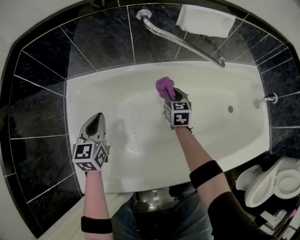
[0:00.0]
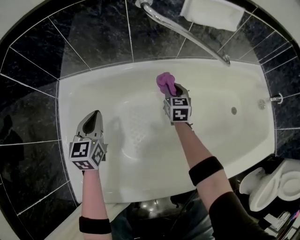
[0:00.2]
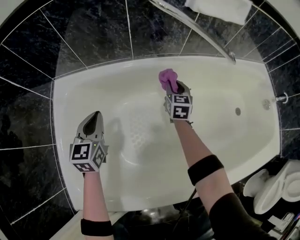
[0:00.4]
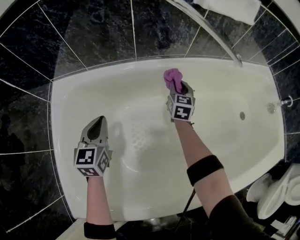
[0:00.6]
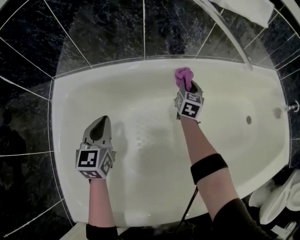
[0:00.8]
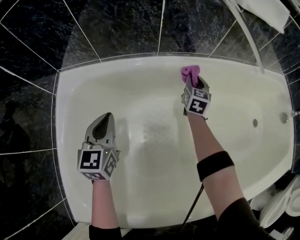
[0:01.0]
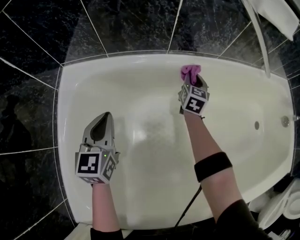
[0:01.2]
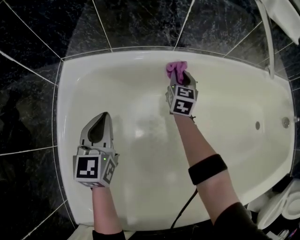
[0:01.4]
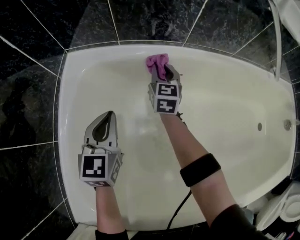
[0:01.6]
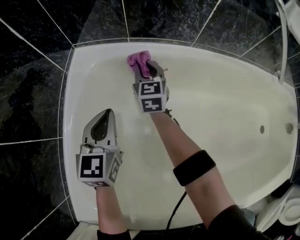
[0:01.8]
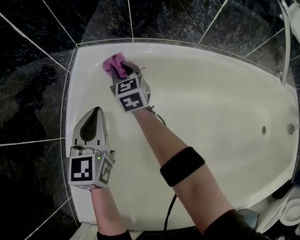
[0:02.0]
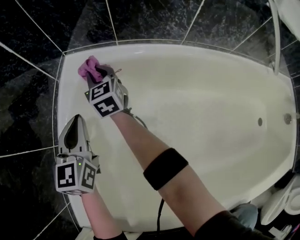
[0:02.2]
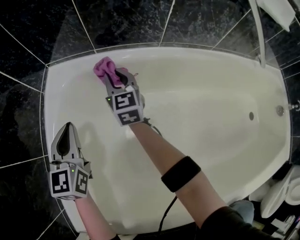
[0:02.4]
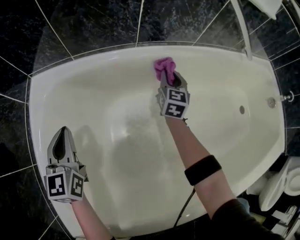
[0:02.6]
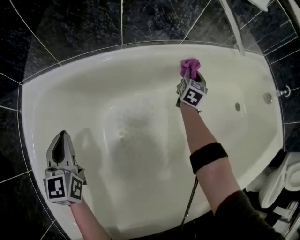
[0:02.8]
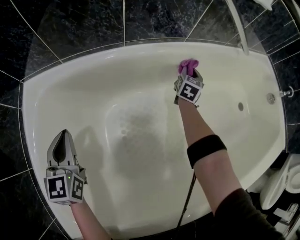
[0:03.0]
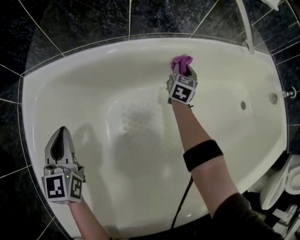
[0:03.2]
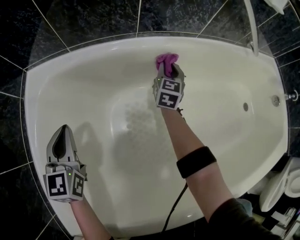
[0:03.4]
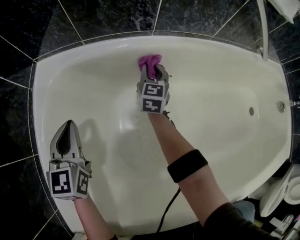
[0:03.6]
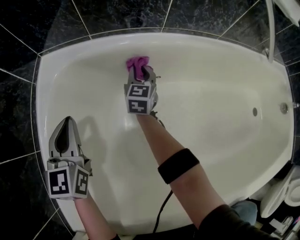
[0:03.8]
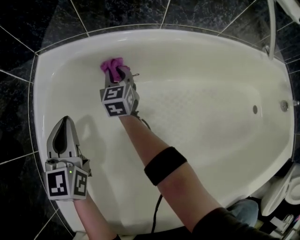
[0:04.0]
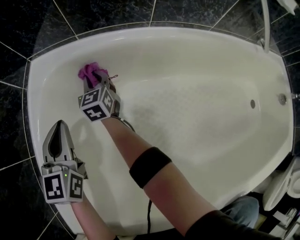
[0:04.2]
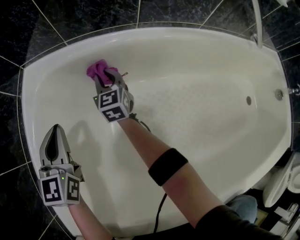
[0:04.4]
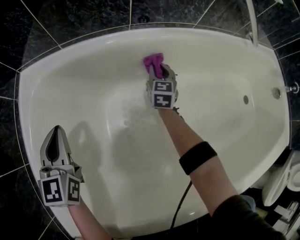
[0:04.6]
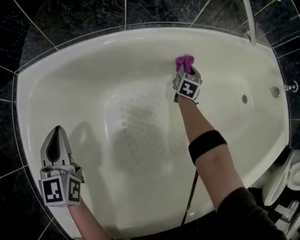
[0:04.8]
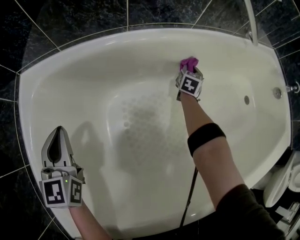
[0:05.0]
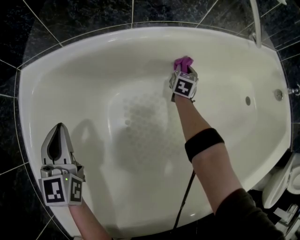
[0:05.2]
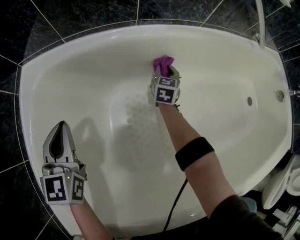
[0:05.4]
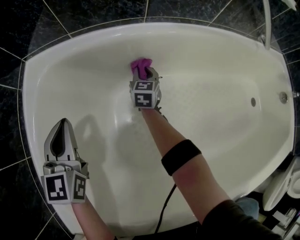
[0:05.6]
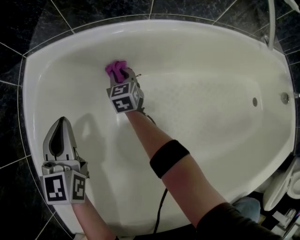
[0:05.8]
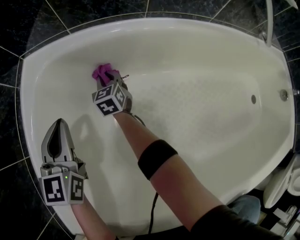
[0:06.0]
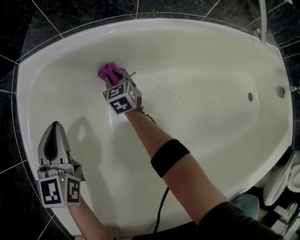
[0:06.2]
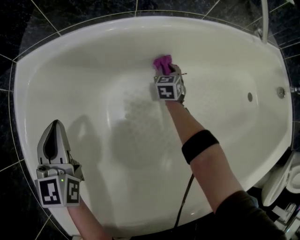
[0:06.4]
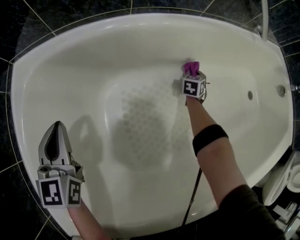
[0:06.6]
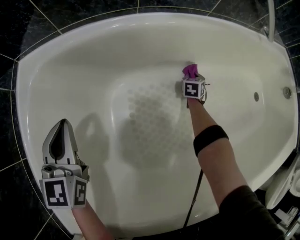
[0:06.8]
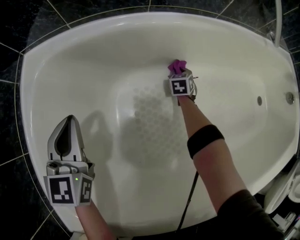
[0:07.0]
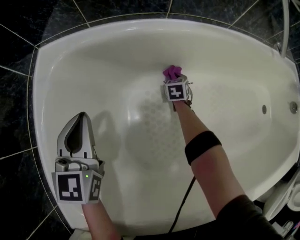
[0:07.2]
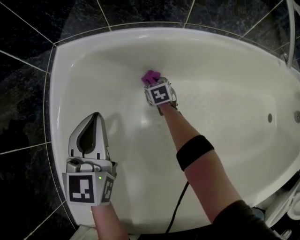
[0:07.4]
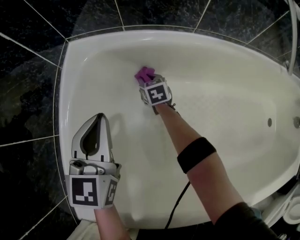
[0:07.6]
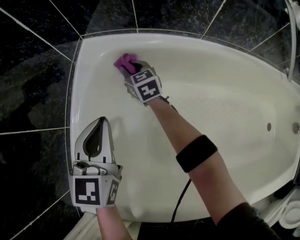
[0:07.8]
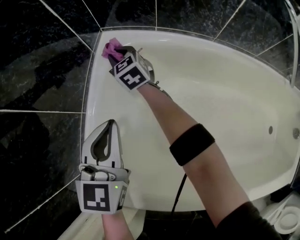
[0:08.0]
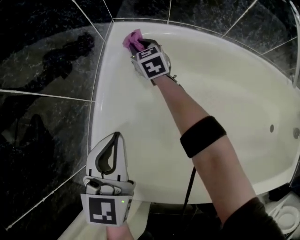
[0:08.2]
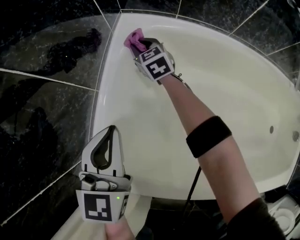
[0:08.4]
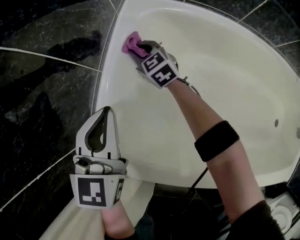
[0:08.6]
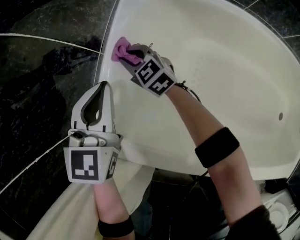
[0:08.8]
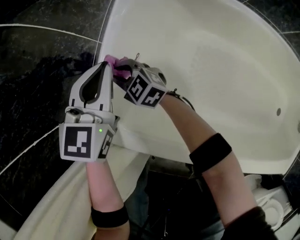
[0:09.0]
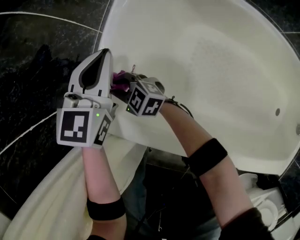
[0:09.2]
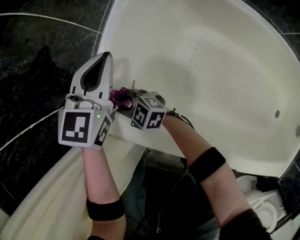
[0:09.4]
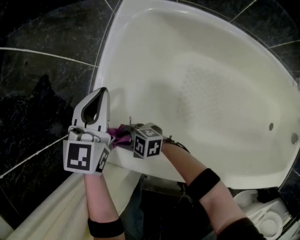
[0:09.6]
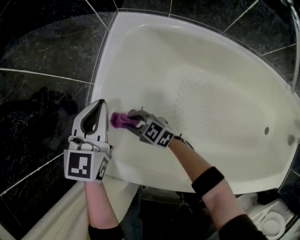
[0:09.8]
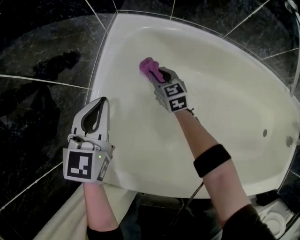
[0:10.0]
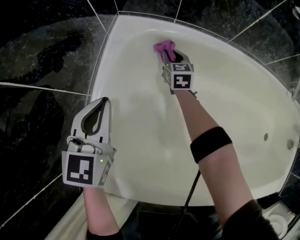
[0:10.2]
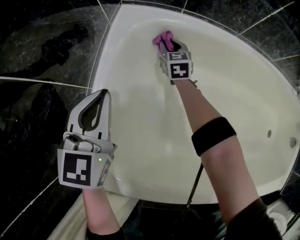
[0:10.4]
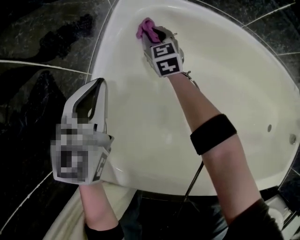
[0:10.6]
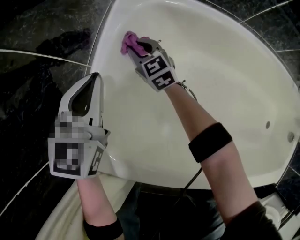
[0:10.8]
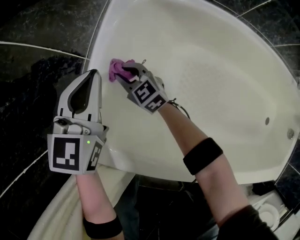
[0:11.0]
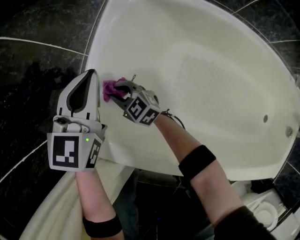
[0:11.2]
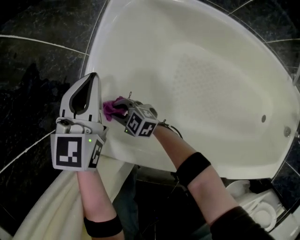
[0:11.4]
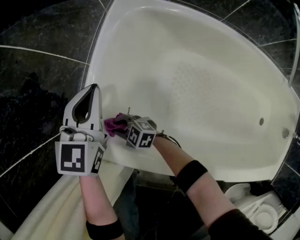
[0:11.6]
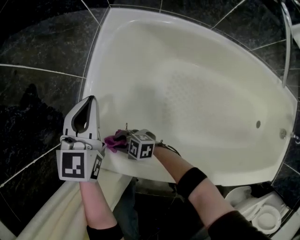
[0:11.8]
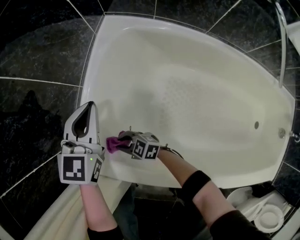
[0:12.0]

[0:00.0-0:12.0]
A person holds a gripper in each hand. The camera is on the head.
0:00.0 to 0:01.6: The left gripper goes approximately 20 cm downward and to the left; the right gripper travels to the left, downward and forward by about 30 cm.
0:01.6 to 0:03.0: The right gripper ends up roughly 40 cm from where it was, and rotates about 30 degrees.
0:03.0 to 0:04.4: The right gripper shifts by about 40 cm, and swivels about 50 degrees.
0:04.4 to 0:06.0: The right gripper shifts approximately 10 cm downward.
0:06.0 to 0:07.6: The left gripper goes about 5 cm upward, while the right gripper moves approximately 10 cm downward and comes back.
0:07.6 to 0:09.0: The right gripper changes place by roughly 50 cm, and turns by about 60 degrees. Meanwhile the left gripper moves roughly 15 cm.
0:09.0 to 0:10.4: The left gripper changes place by approximately 5 cm. The right gripper changes place by some 40 cm, and changes its angle by about 50 degrees.
0:10.4 to 0:12.0: The left gripper shifts by roughly 5 cm, while the right gripper moves roughly 50 cm, and turns by roughly 70 degrees.

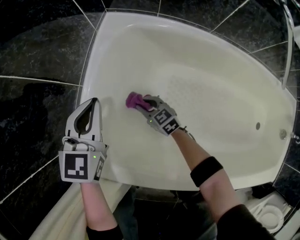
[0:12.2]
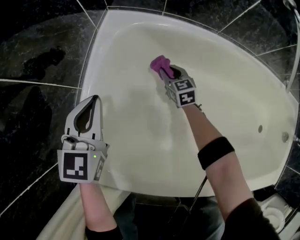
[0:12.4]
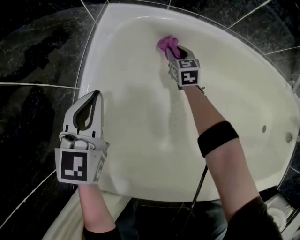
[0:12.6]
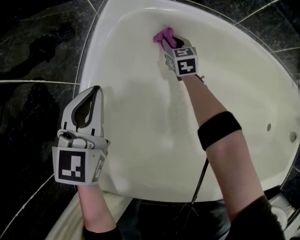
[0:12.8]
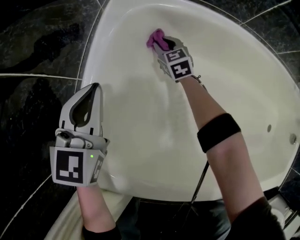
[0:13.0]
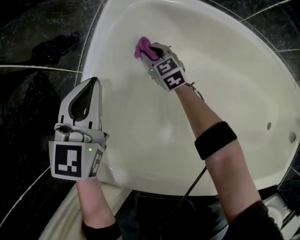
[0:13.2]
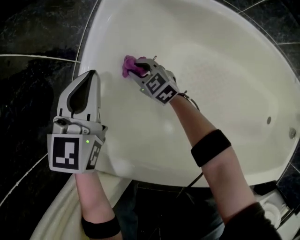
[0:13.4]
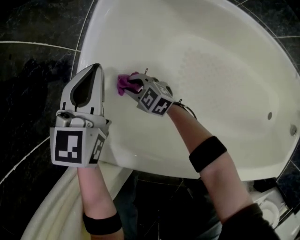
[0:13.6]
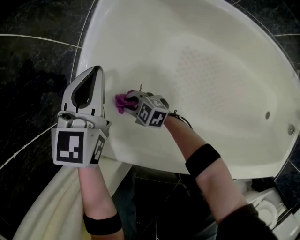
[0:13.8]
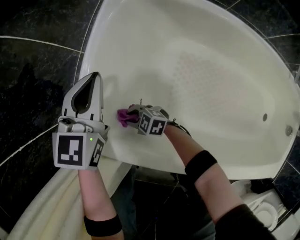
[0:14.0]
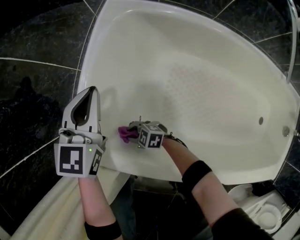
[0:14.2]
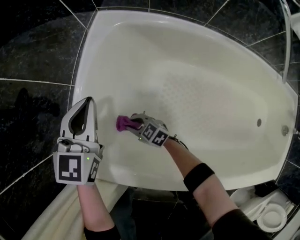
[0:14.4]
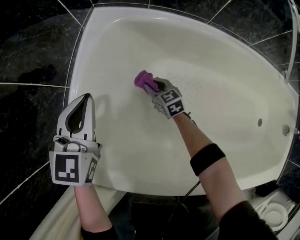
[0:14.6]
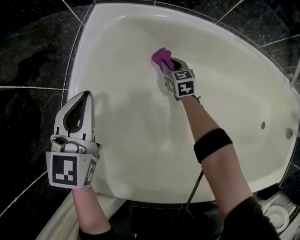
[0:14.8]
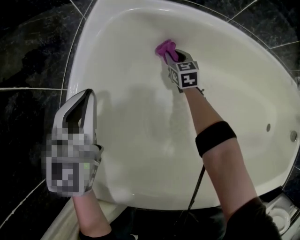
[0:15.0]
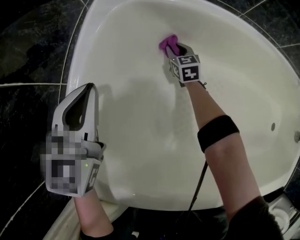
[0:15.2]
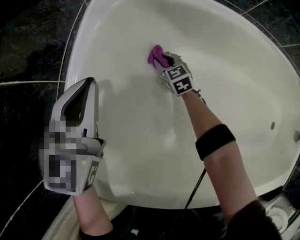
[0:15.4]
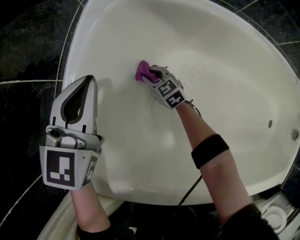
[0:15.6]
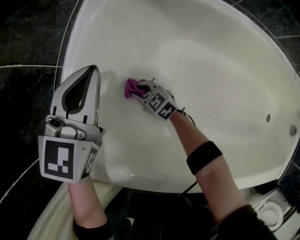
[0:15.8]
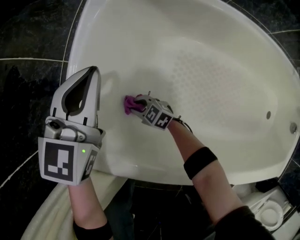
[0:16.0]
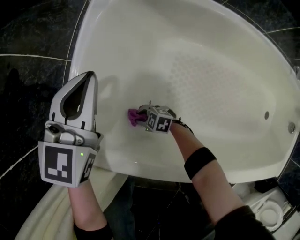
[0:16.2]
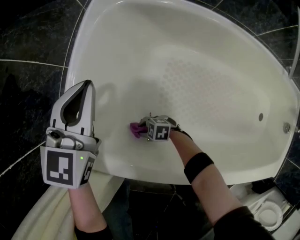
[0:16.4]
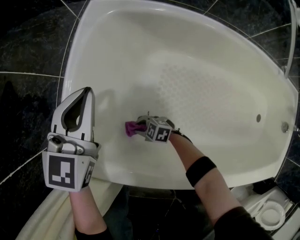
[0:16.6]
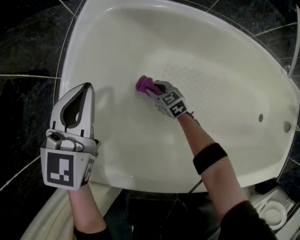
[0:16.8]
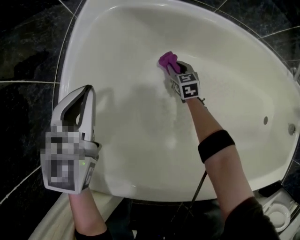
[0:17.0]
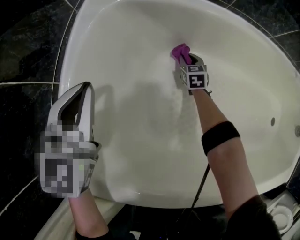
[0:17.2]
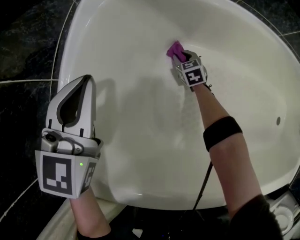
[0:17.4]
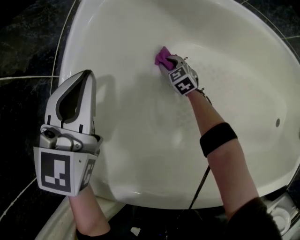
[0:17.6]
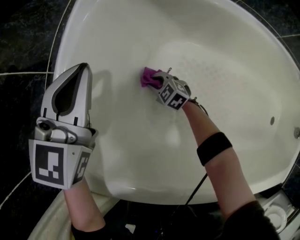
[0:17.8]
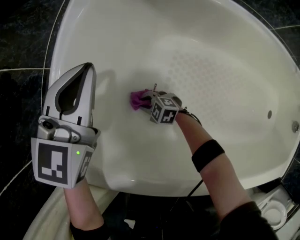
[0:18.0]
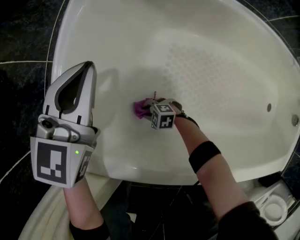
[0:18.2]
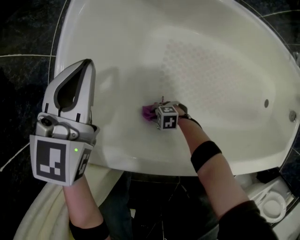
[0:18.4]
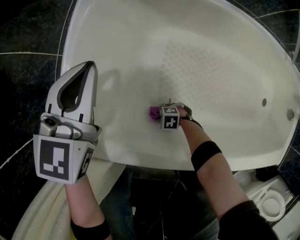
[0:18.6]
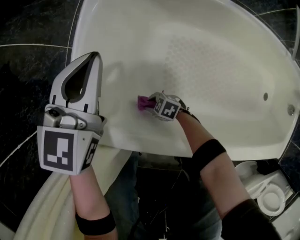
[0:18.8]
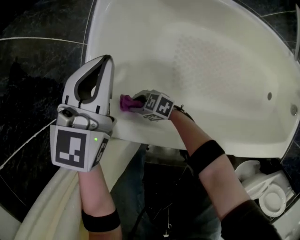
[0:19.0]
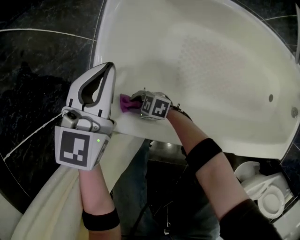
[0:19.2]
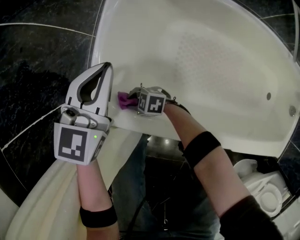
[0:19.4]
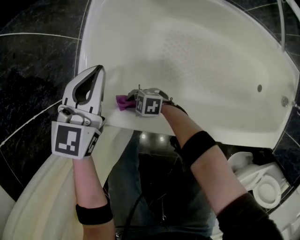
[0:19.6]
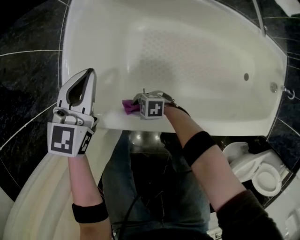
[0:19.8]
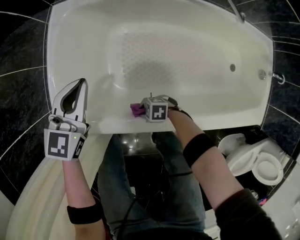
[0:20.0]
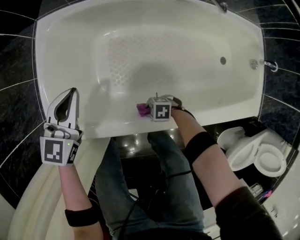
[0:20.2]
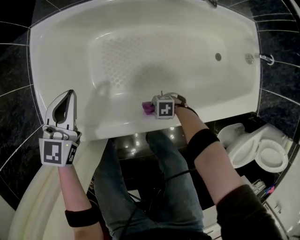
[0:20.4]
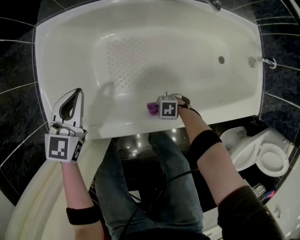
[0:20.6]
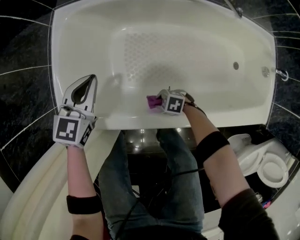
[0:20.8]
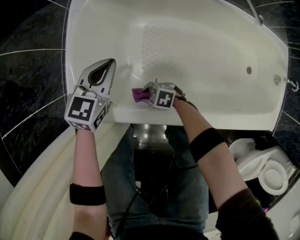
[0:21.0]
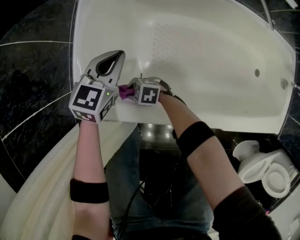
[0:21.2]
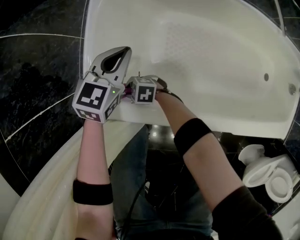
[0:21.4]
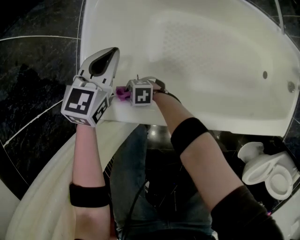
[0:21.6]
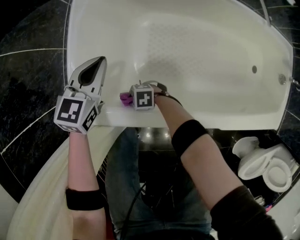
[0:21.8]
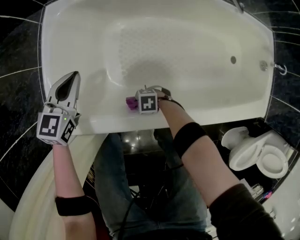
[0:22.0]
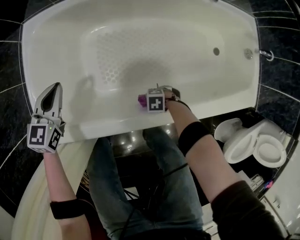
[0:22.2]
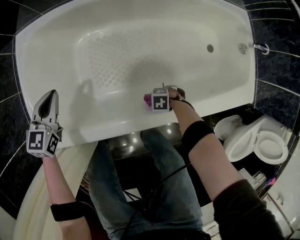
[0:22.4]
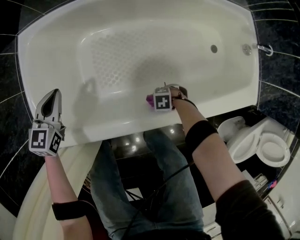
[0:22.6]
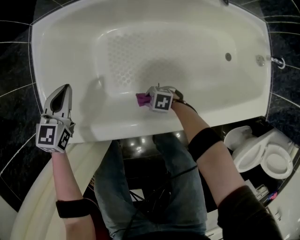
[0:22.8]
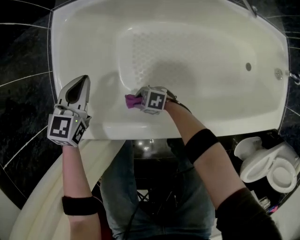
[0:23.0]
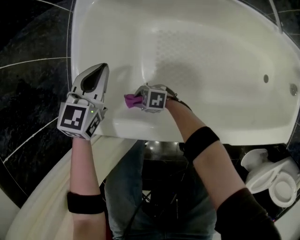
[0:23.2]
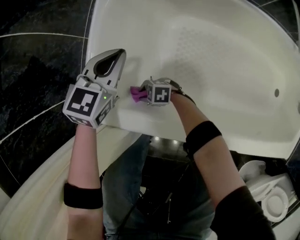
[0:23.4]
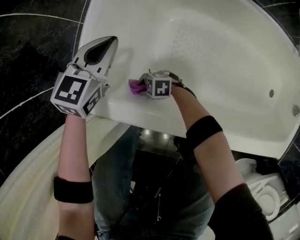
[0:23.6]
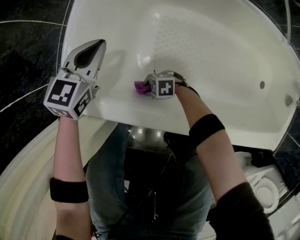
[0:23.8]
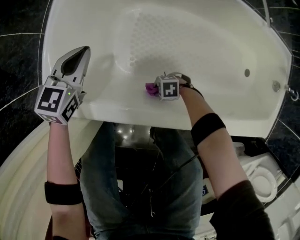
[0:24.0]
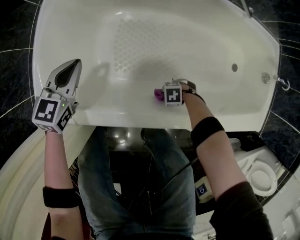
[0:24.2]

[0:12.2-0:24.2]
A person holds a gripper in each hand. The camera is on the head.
0:12.2 to 0:13.8: The right gripper moves roughly 20 cm, and rotates approximately 30 degrees.
0:13.8 to 0:15.2: The left gripper moves about 10 cm; the right gripper moves roughly 50 cm, and changes its angle by about 60 degrees.
0:15.2 to 0:16.6: The right gripper changes place by roughly 40 cm, and rotates about 60 degrees.
0:16.6 to 0:18.2: The right gripper is displaced downward by approximately 5 cm.
0:18.2 to 0:19.8: The right gripper goes some 25 cm upward, while the left gripper heads upward, covering roughly 15 cm.
0:19.8 to 0:21.2: The left gripper moves downward, about 5 cm.
0:21.2 to 0:22.6: The left gripper shifts by about 5 cm, while the right gripper shifts by some 40 cm, and changes its angle by about 30 degrees.
0:22.6 to 0:24.2: The grippers both shift downward by about 5 cm.
